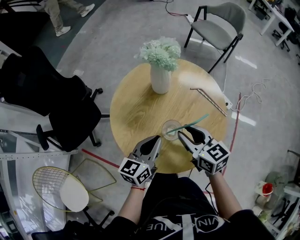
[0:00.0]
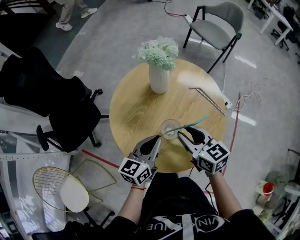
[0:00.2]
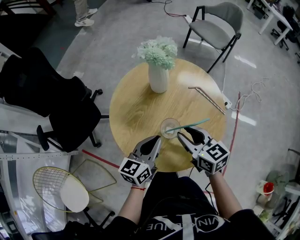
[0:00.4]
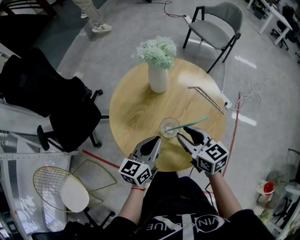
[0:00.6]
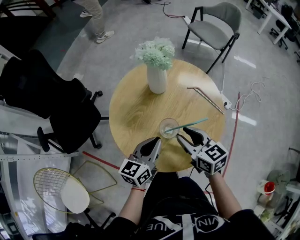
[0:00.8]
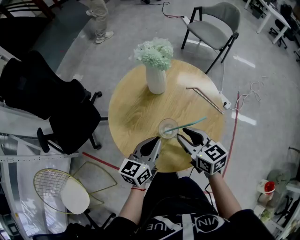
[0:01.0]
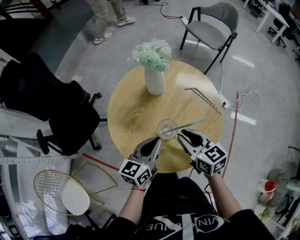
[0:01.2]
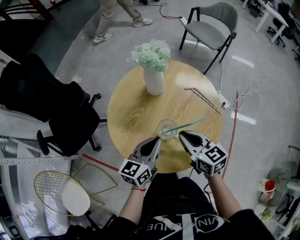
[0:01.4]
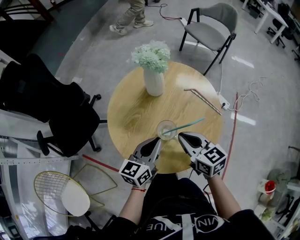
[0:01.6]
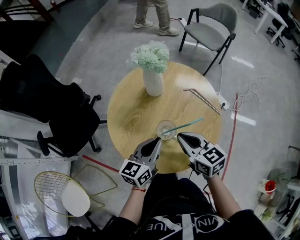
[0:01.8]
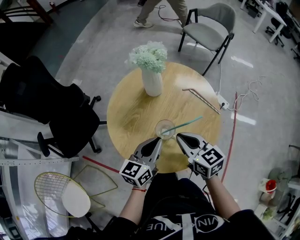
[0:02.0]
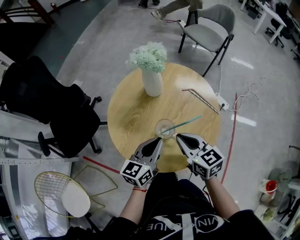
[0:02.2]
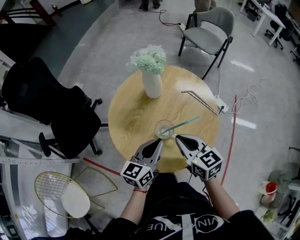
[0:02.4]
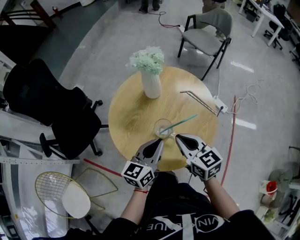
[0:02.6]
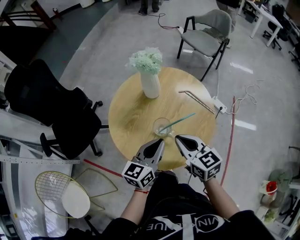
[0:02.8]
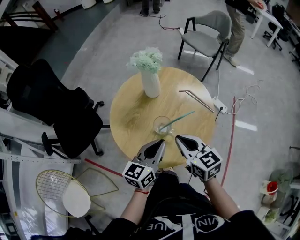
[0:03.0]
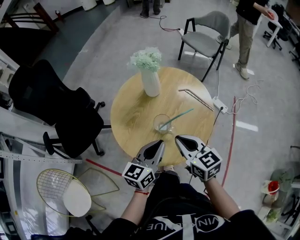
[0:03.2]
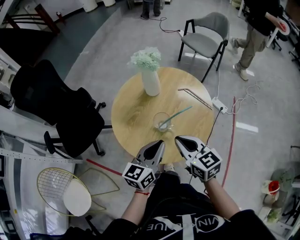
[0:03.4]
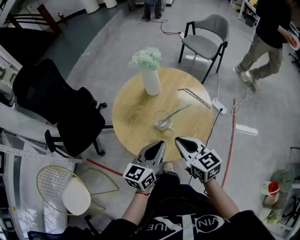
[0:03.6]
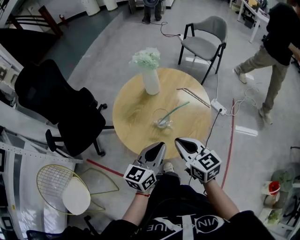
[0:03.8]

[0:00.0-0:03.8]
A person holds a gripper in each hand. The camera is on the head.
0:00.0 to 0:01.2: There are only small adjustments of the grippers.
0:01.2 to 0:02.6: The grippers move only a little.
0:02.6 to 0:03.8: The two grippers go some 10 cm backward.

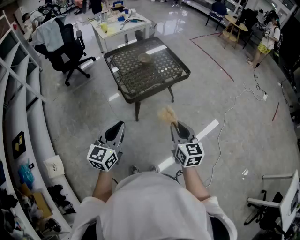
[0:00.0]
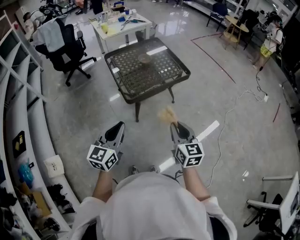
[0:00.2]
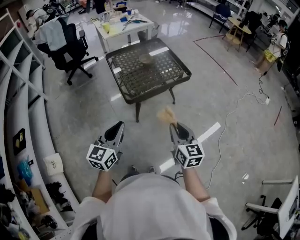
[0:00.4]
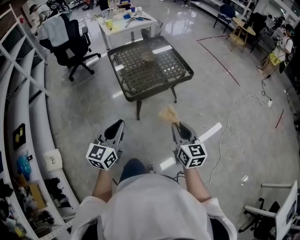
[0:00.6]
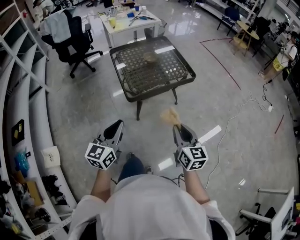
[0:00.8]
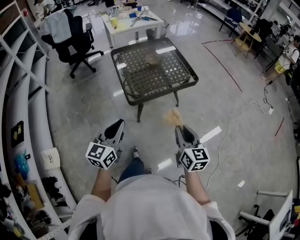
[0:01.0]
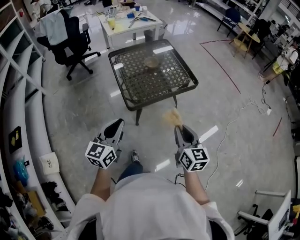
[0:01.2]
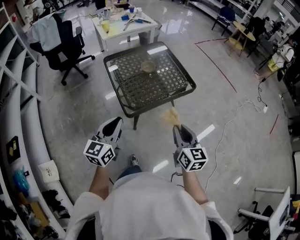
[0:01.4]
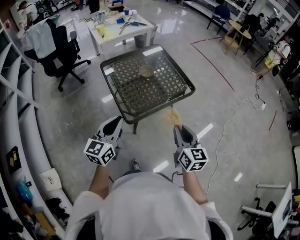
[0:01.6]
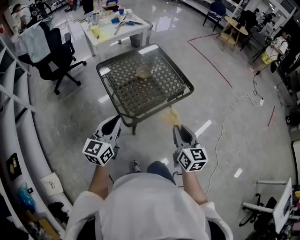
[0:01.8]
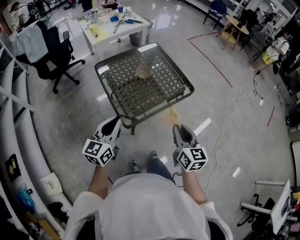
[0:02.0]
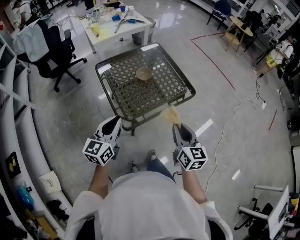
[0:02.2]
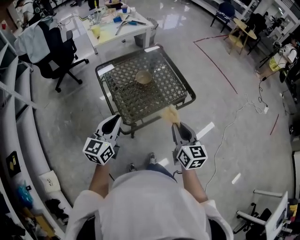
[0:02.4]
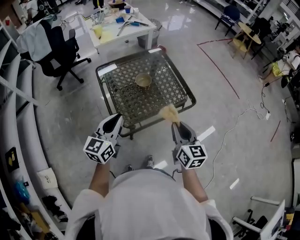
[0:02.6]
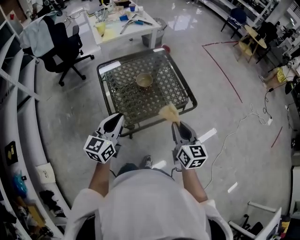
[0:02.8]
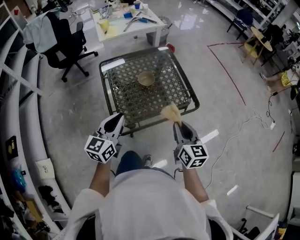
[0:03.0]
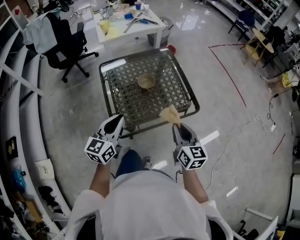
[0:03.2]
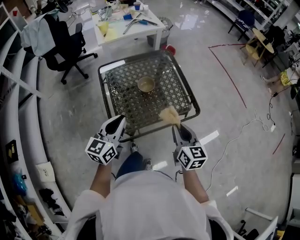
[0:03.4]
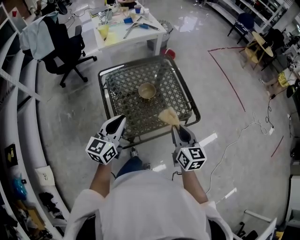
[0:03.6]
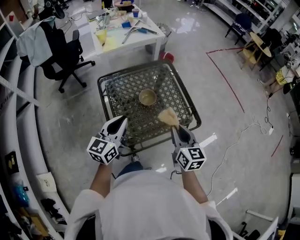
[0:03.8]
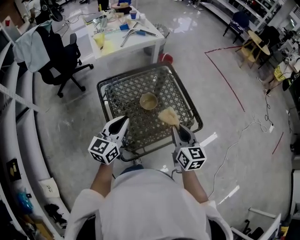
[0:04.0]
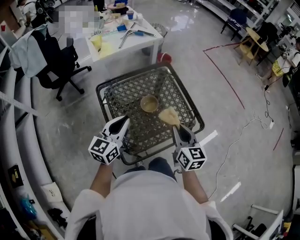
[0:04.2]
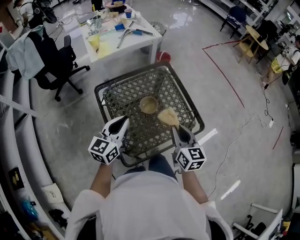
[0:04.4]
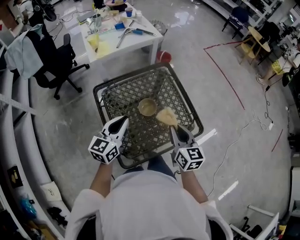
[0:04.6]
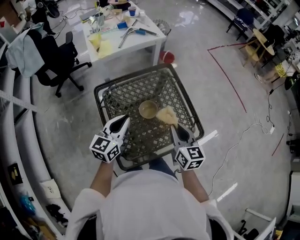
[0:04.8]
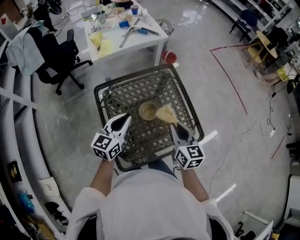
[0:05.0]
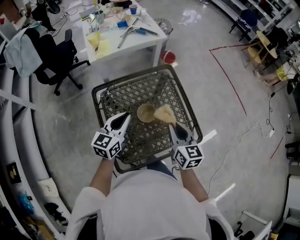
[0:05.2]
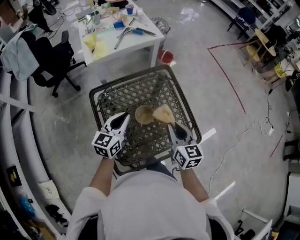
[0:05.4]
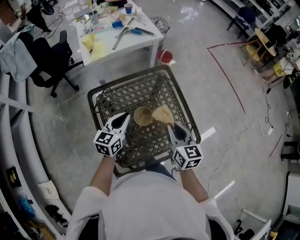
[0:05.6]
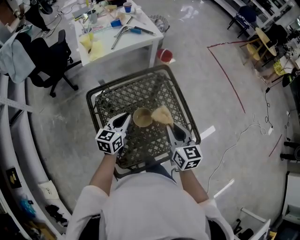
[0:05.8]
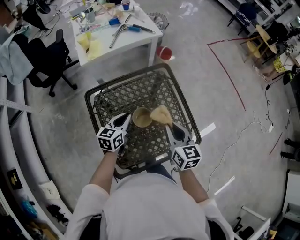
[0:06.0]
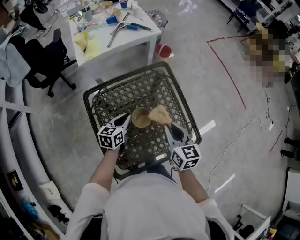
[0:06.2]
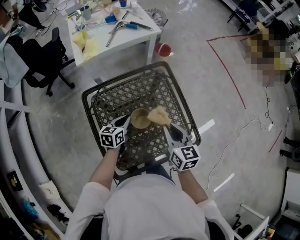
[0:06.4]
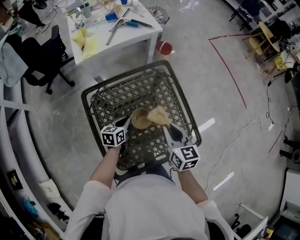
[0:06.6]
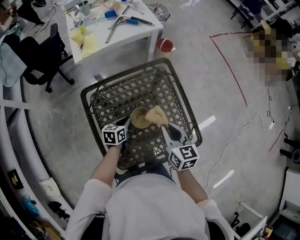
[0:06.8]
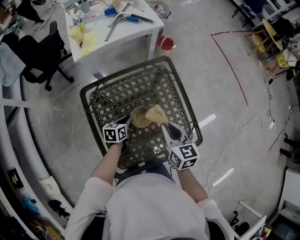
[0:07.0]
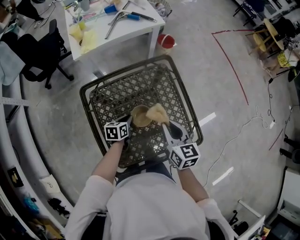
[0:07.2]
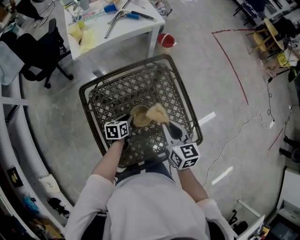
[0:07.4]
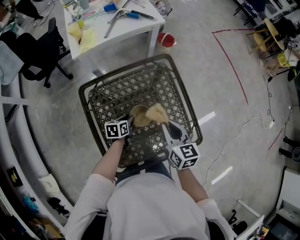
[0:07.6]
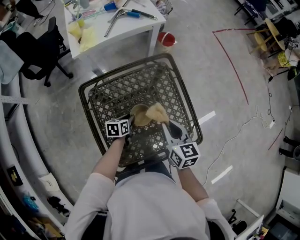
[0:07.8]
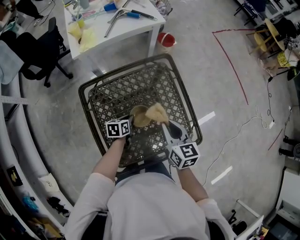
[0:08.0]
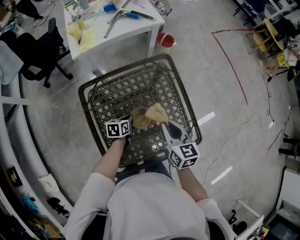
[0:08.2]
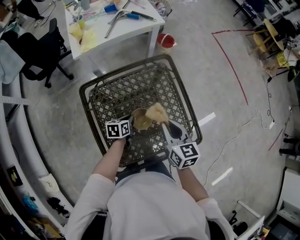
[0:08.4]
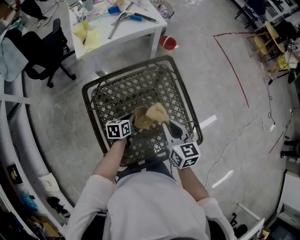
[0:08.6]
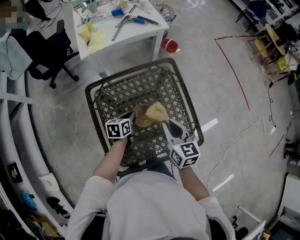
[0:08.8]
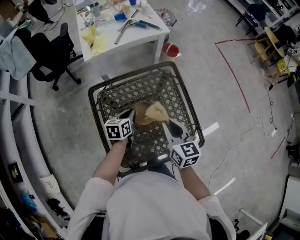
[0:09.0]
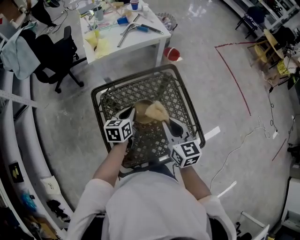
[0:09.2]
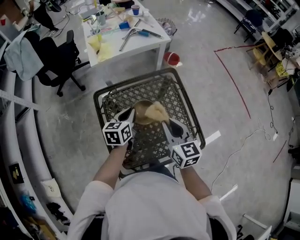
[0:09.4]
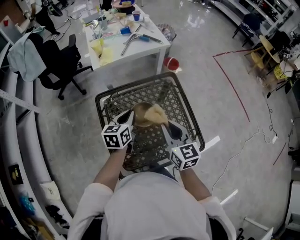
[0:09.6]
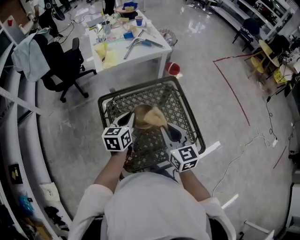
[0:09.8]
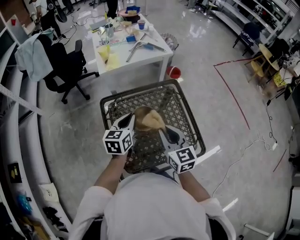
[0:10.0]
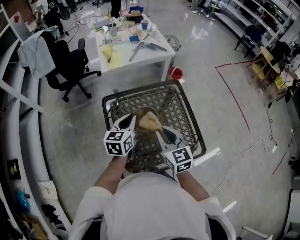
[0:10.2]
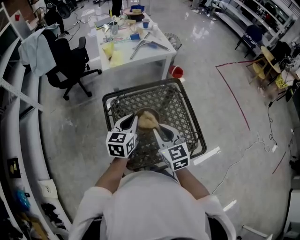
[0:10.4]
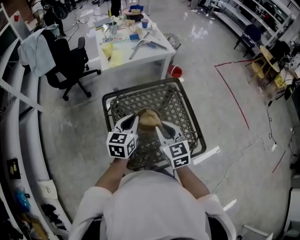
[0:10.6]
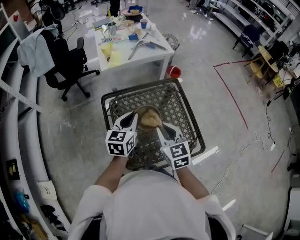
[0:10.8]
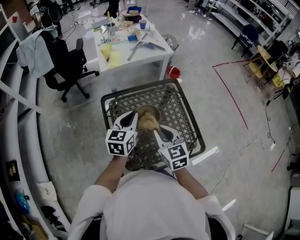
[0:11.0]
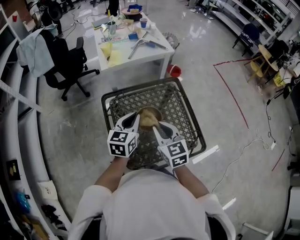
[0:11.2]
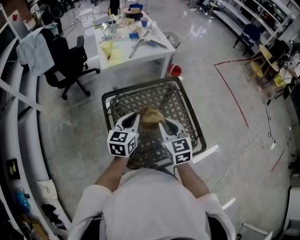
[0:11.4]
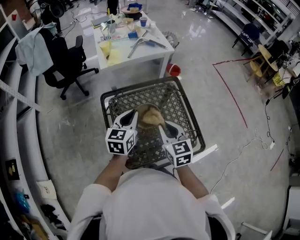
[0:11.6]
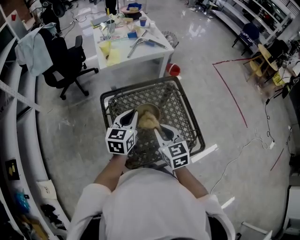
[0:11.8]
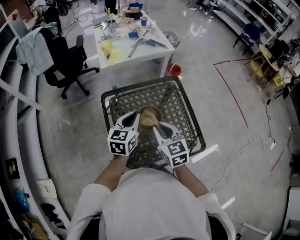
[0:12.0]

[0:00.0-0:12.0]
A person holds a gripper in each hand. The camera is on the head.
0:00.0 to 0:01.6: The two grippers go approximately 20 cm forward.
0:01.6 to 0:03.0: The right gripper travels forward by about 20 cm; the left gripper travels forward and to the right by roughly 15 cm.
0:03.0 to 0:04.4: The left gripper shifts approximately 20 cm forward, while the right gripper is displaced forward and to the left by roughly 15 cm.
0:04.4 to 0:06.0: The left gripper moves forward and downward, about 20 cm; the right gripper heads forward, covering roughly 15 cm.
0:06.0 to 0:07.6: The right gripper shifts by some 5 cm, while the left gripper heads downward, covering approximately 15 cm, and rotates approximately 30 degrees.
0:07.6 to 0:09.0: The left gripper is displaced upward by roughly 10 cm; the right gripper ends up approximately 5 cm from where it was.
0:09.0 to 0:10.4: The right gripper moves to the left, backward and upward, approximately 10 cm; the left gripper moves upward and backward, some 20 cm, and turns by roughly 20 degrees.
0:10.4 to 0:12.0: The grippers make only small movements.

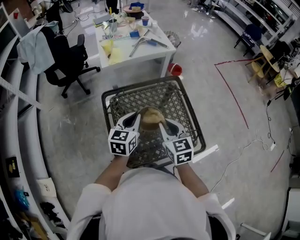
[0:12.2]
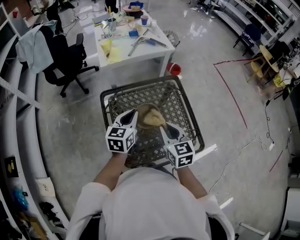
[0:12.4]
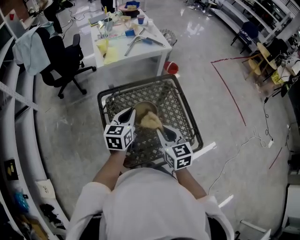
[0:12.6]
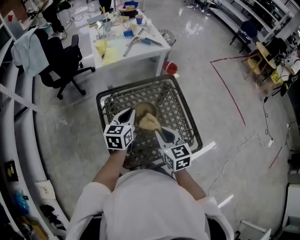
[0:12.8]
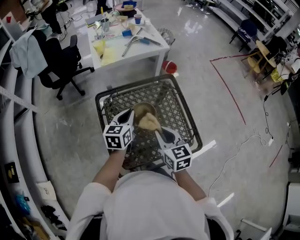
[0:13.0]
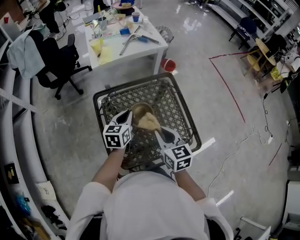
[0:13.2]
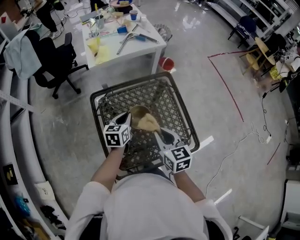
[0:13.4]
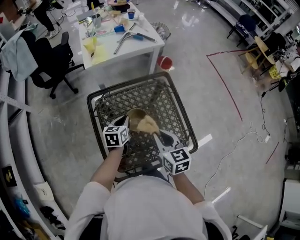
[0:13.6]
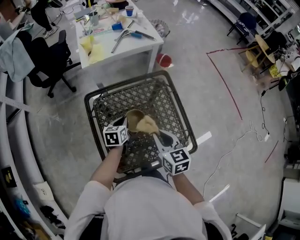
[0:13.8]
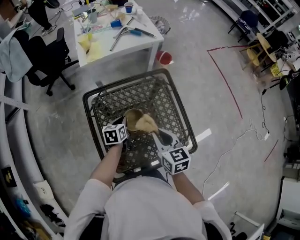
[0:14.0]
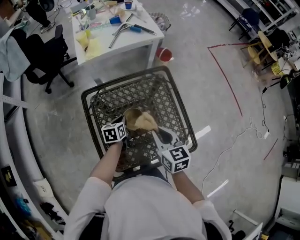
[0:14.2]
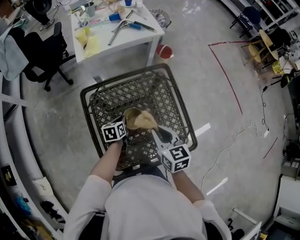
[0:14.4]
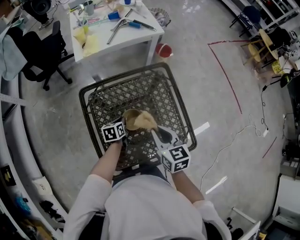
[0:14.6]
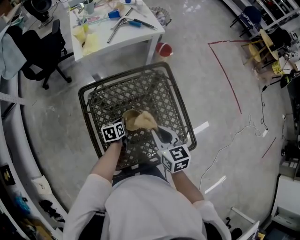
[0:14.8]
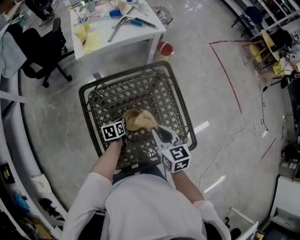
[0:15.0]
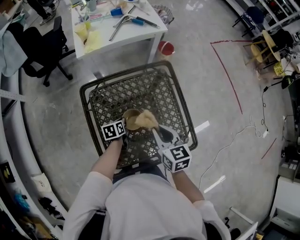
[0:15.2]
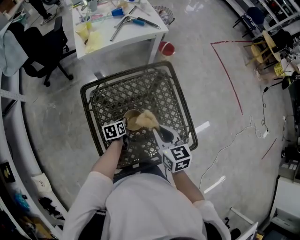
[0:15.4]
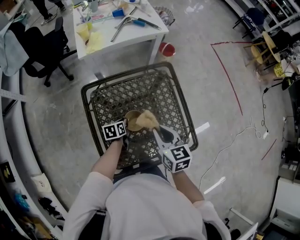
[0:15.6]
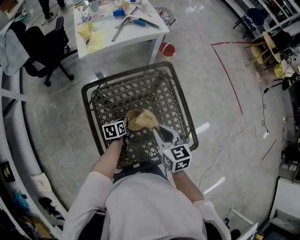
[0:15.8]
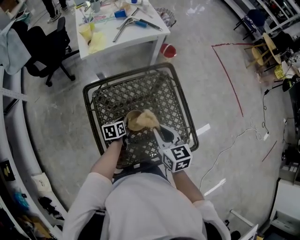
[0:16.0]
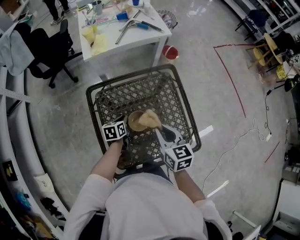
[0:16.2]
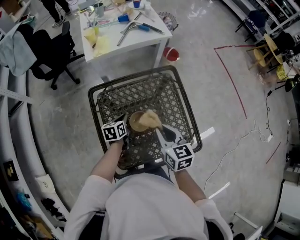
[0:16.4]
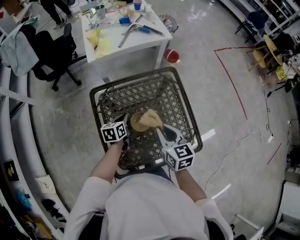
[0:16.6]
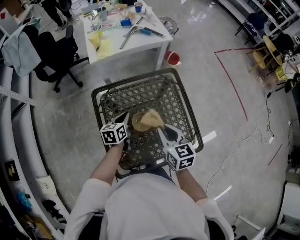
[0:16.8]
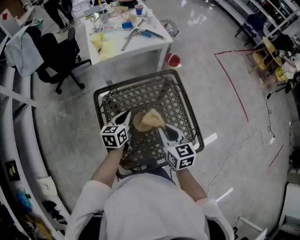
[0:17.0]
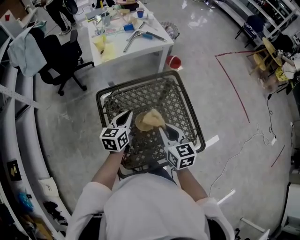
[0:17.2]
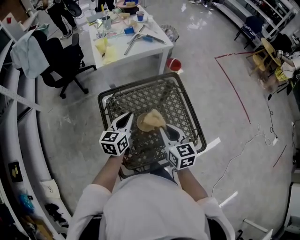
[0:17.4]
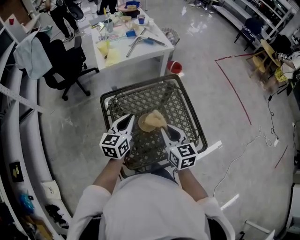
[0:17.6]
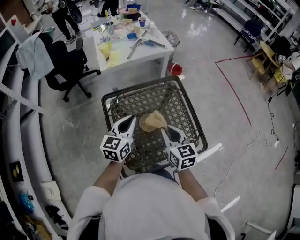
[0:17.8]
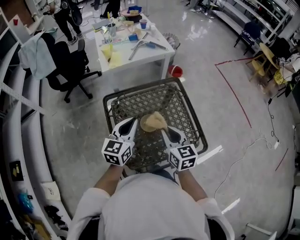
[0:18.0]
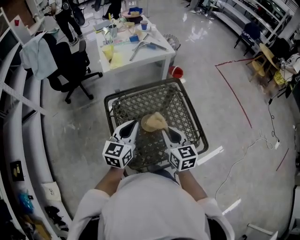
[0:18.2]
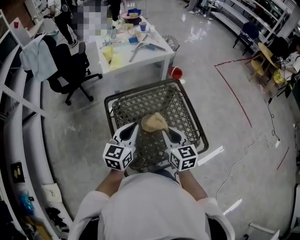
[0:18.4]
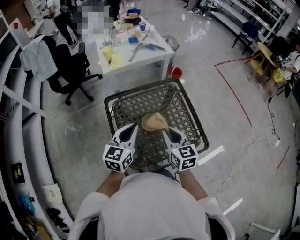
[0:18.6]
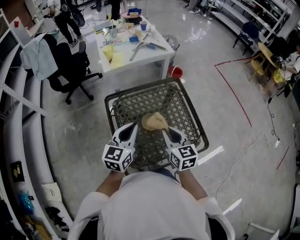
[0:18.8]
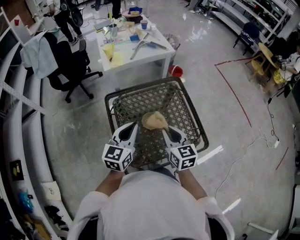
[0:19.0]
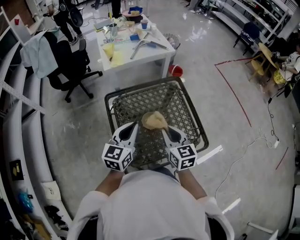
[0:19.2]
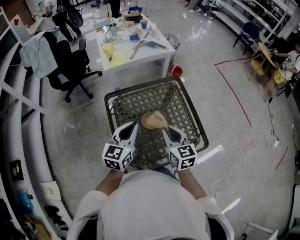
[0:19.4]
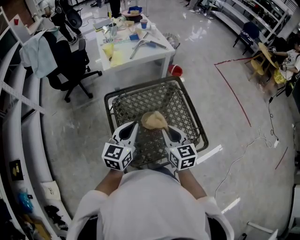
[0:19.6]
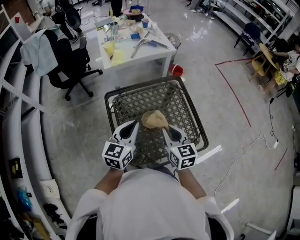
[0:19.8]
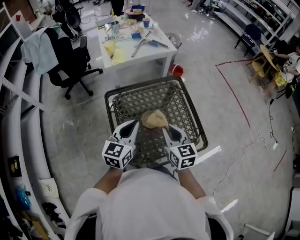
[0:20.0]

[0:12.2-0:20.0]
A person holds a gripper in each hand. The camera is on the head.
0:12.2 to 0:13.8: The left gripper goes some 15 cm downward, and changes its angle by approximately 20 degrees; the right gripper heads downward, covering roughly 5 cm.
0:13.8 to 0:15.4: The left gripper moves downward, roughly 10 cm, and swivels approximately 20 degrees.
0:15.4 to 0:16.8: The left gripper goes roughly 15 cm upward, and turns by roughly 20 degrees.
0:16.8 to 0:18.4: The right gripper moves backward, approximately 5 cm, while the left gripper moves upward and backward, approximately 20 cm, and swivels some 30 degrees.
0:18.4 to 0:20.0: The grippers stay close to where they were, moving slightly.
